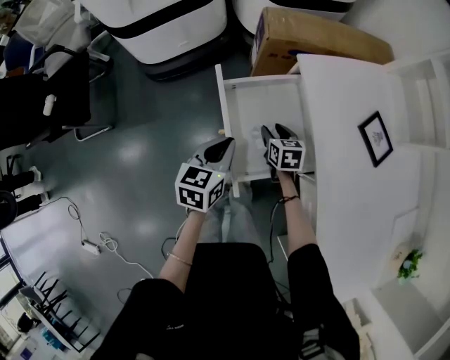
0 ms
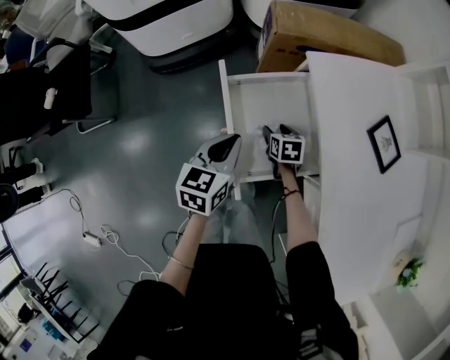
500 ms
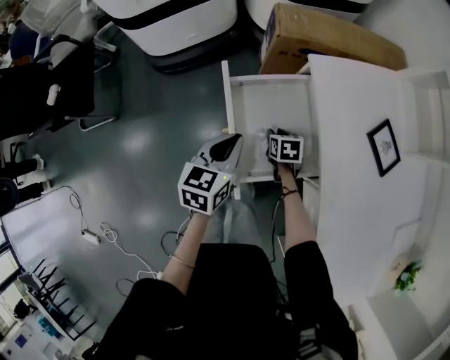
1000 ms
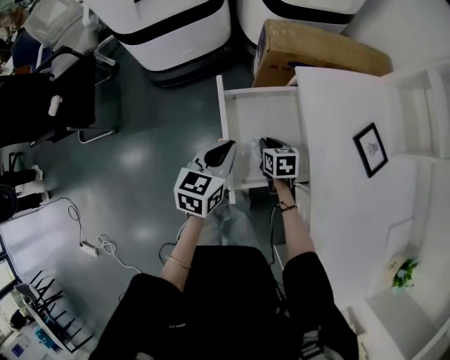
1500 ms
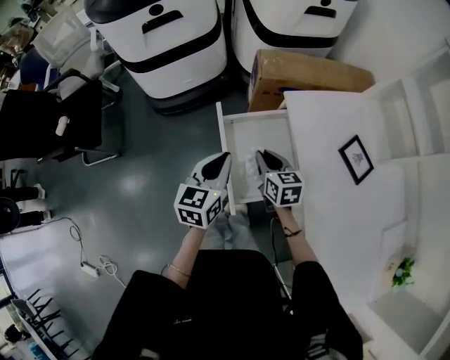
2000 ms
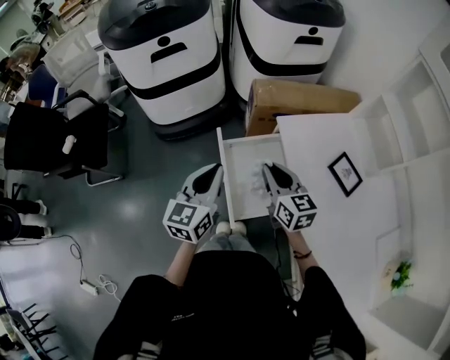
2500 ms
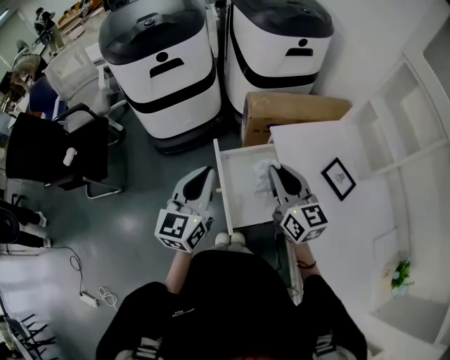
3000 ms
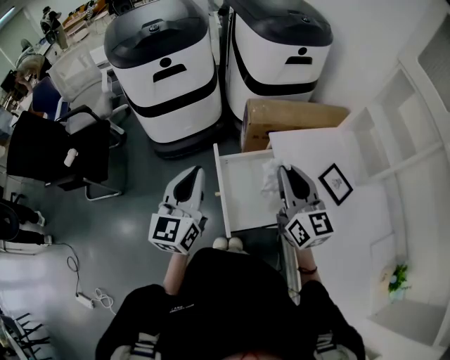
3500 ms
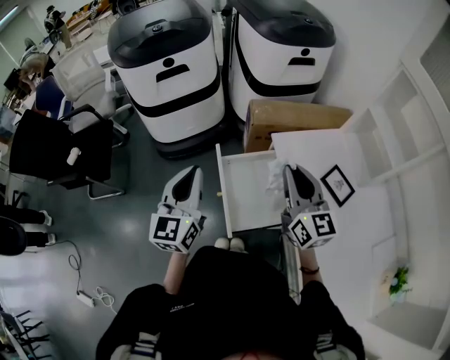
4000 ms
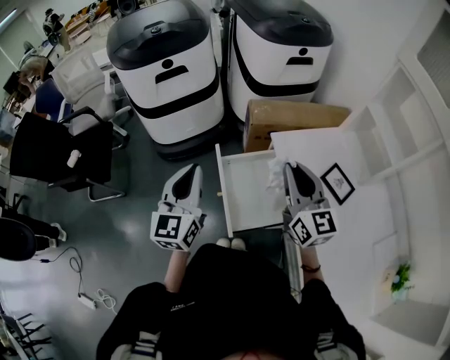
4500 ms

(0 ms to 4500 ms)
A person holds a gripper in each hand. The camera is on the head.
0 ms - 2000 ms: The left gripper moves upward, about 10 cm; the right gripper is displaced upward by approximately 15 cm, and closes up.
2000 ms - 4500 ms: The left gripper goes roughly 20 cm upward, and rotates some 30 degrees. Meanwhile the right gripper shifts approximately 30 cm upward, and tips its fingers upward by some 30 degrees.

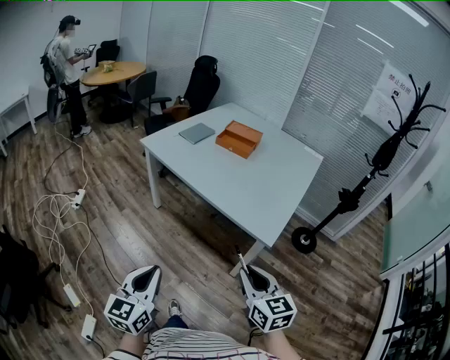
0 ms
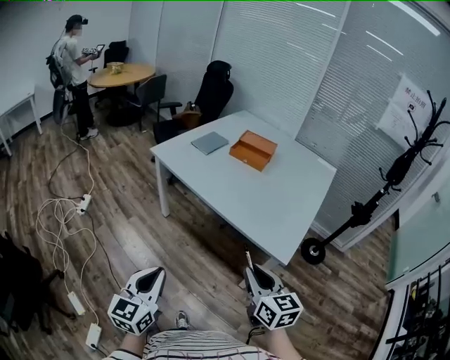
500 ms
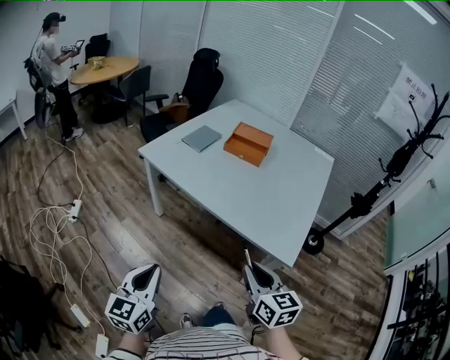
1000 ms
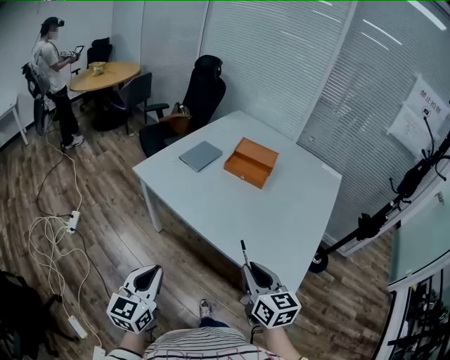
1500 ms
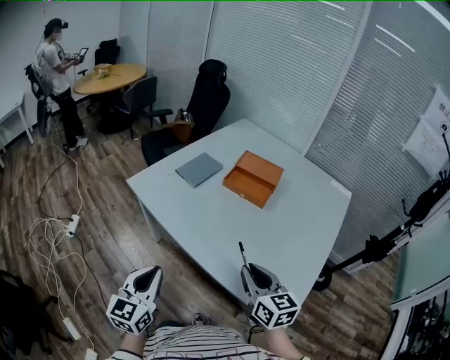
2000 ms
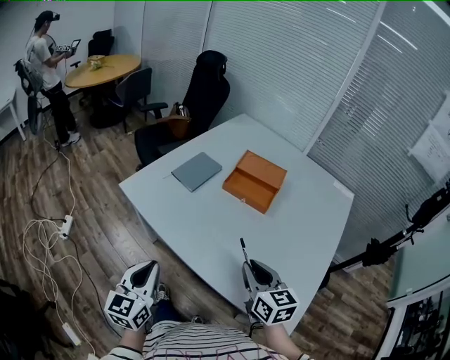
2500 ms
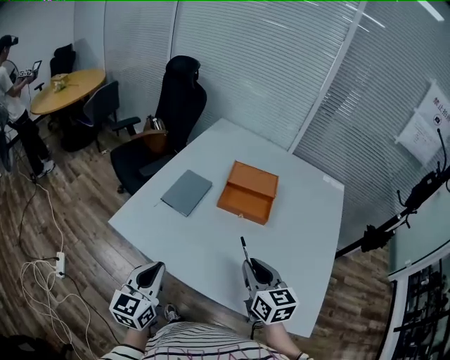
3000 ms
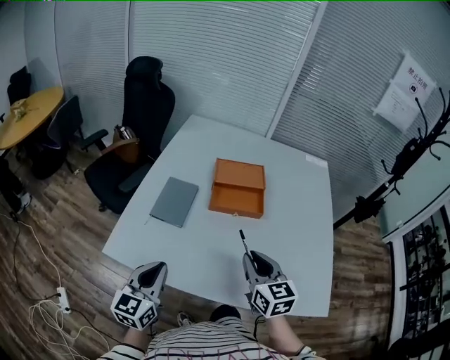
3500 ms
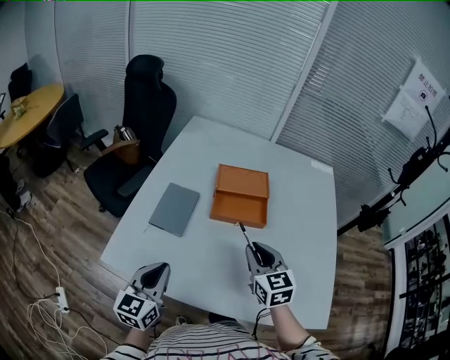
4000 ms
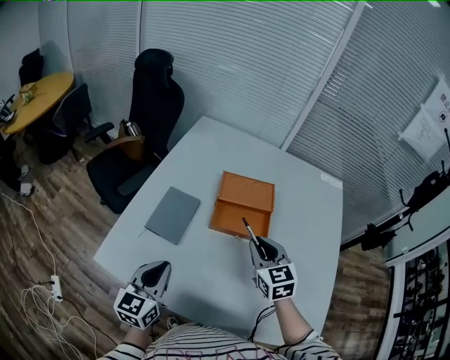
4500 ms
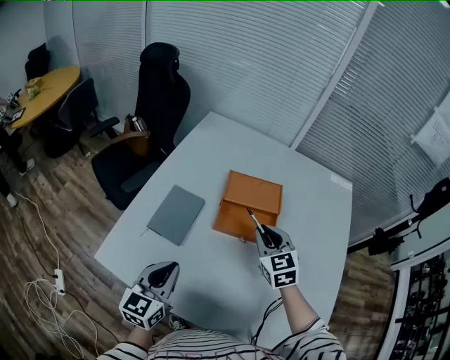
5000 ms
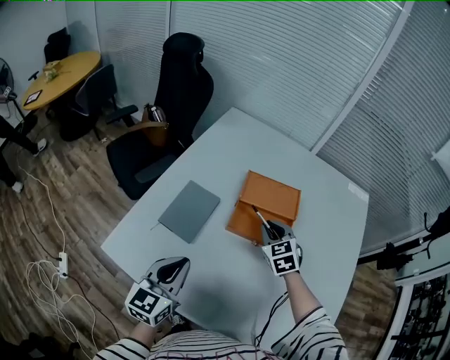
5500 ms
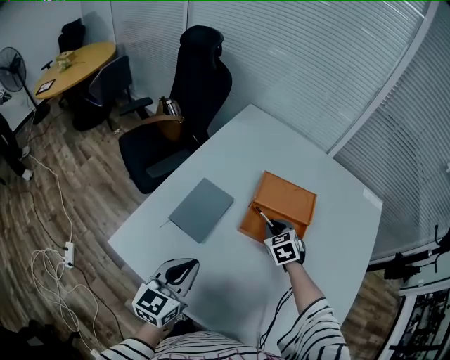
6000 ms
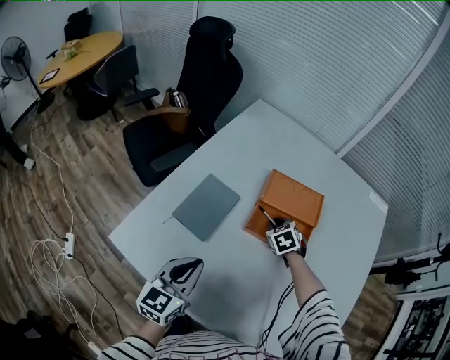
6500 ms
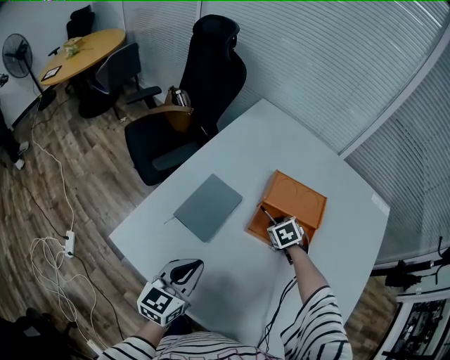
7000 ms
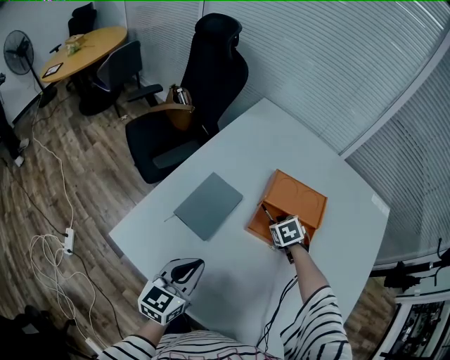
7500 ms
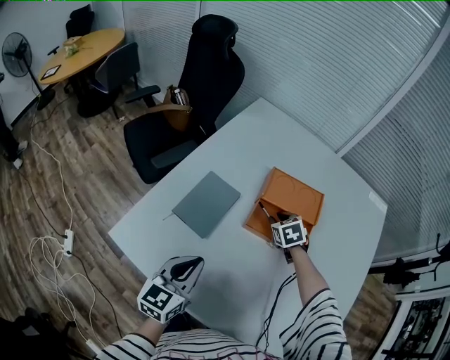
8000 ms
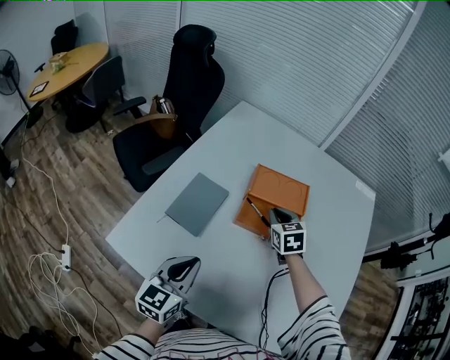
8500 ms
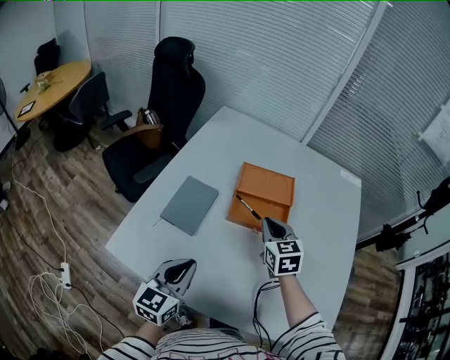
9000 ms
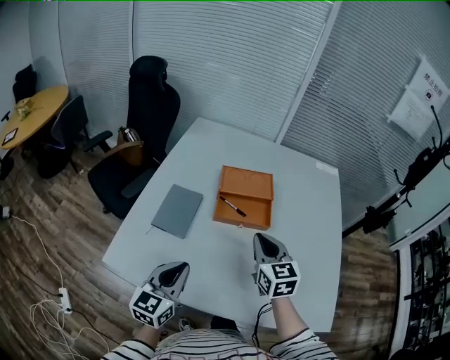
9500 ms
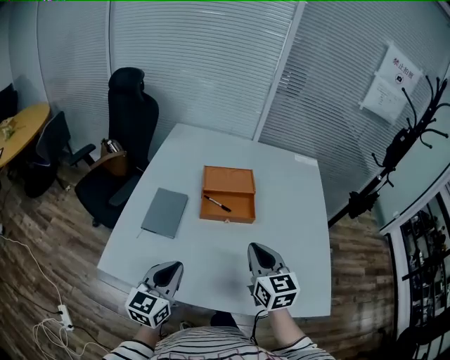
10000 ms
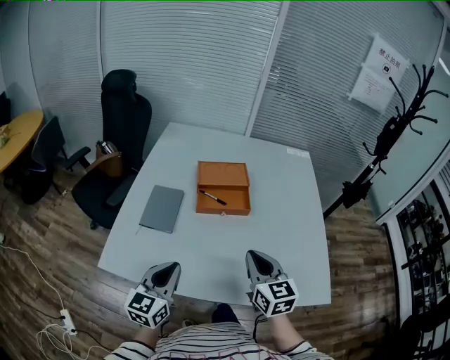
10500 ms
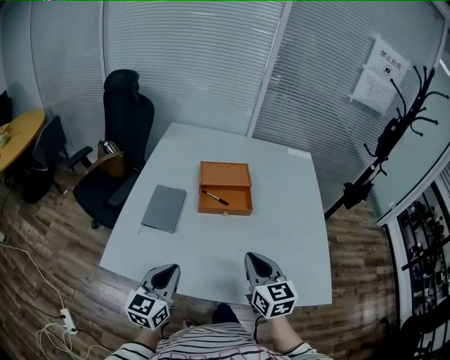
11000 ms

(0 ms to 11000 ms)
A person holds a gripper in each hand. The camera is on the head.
0 ms - 2000 ms: Both grippers travel together forward, roughly 40 cm.
2000 ms - 3500 ms: The left gripper shifts by approximately 30 cm, and changes its angle by about 30 degrees. The right gripper moves roughly 20 cm, and swivels approximately 30 degrees.
3500 ms - 5500 ms: The right gripper goes approximately 30 cm forward, and turns by roughly 40 degrees. Meanwhile the left gripper heads forward, covering approximately 15 cm.
5500 ms - 7500 ms: The left gripper travels downward by roughly 5 cm. The right gripper moves downward and forward, some 15 cm, and swivels some 30 degrees.
7500 ms - 9000 ms: The left gripper travels backward by about 5 cm. Meanwhile the right gripper travels upward and backward by about 20 cm, and angles its fingers upward, by roughly 40 degrees.
9000 ms - 11000 ms: The left gripper goes some 10 cm backward. Meanwhile the right gripper moves backward, roughly 25 cm.

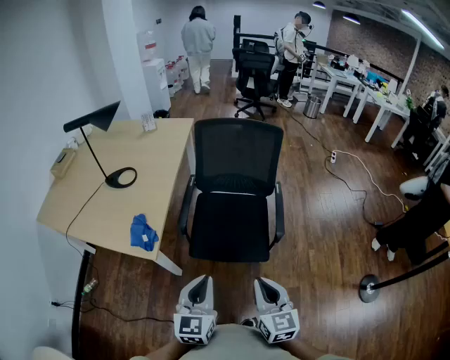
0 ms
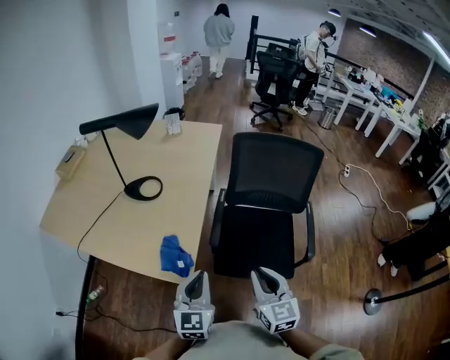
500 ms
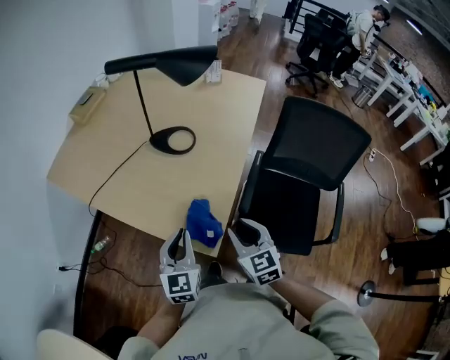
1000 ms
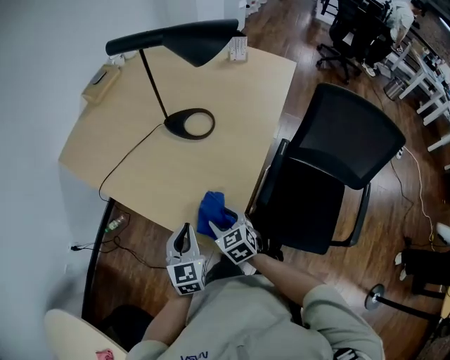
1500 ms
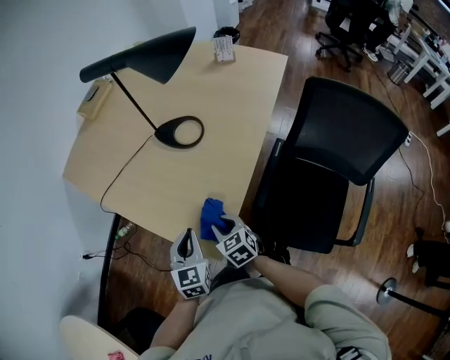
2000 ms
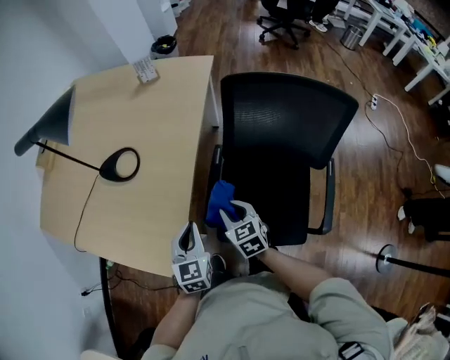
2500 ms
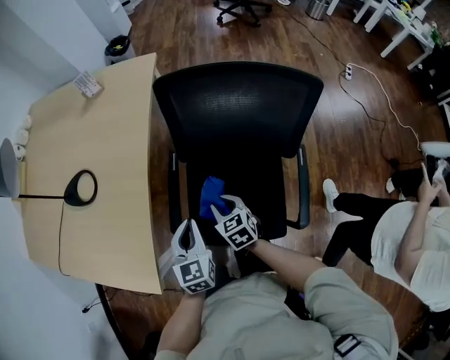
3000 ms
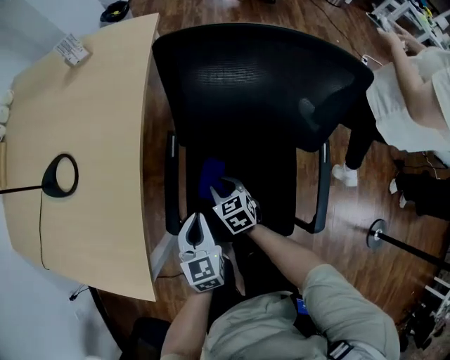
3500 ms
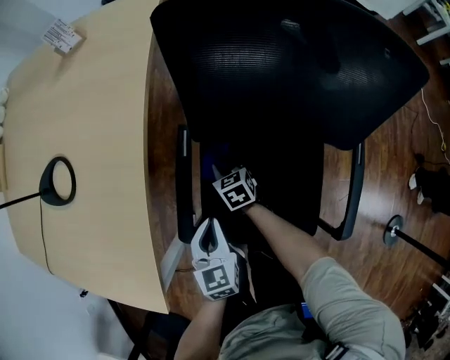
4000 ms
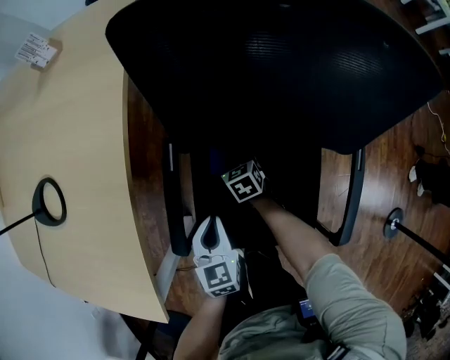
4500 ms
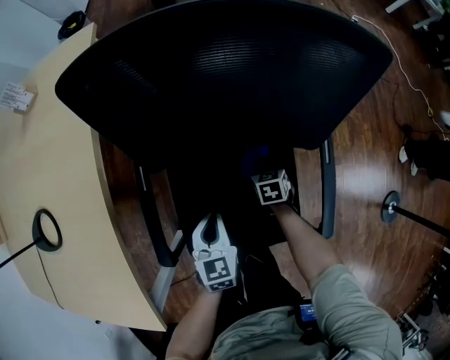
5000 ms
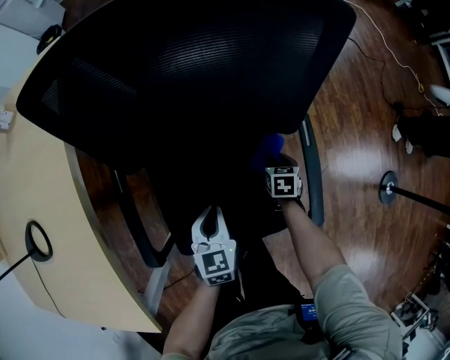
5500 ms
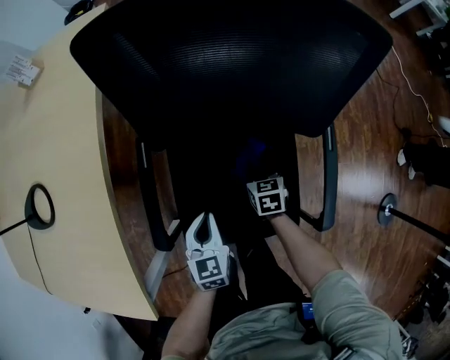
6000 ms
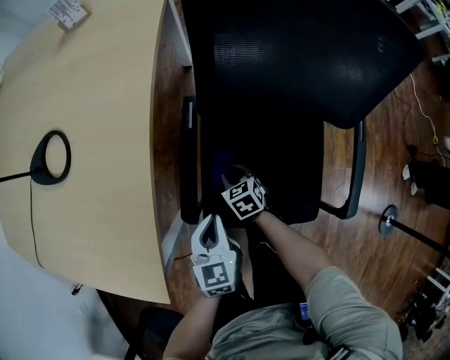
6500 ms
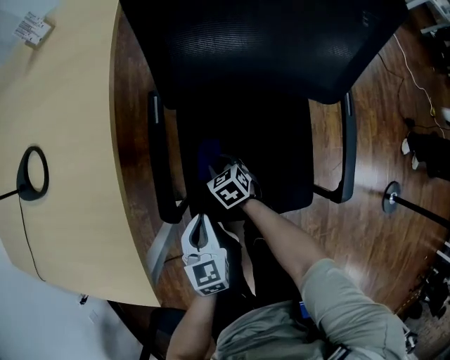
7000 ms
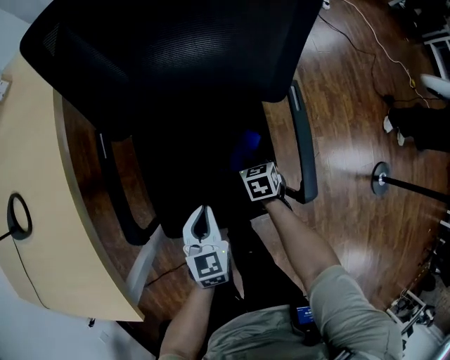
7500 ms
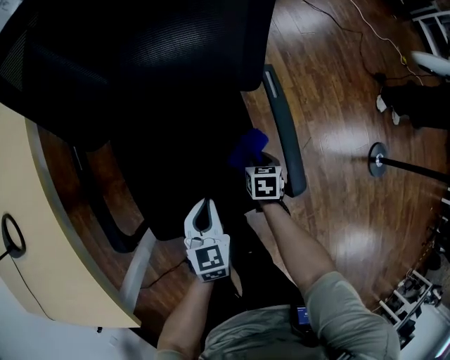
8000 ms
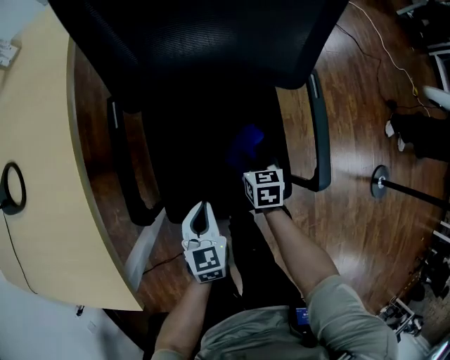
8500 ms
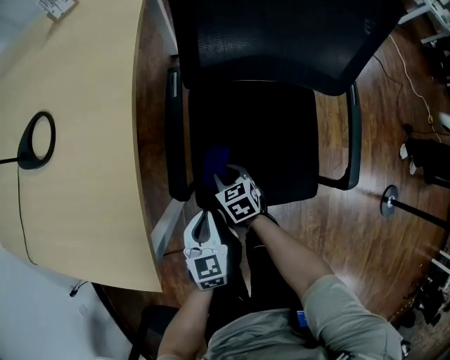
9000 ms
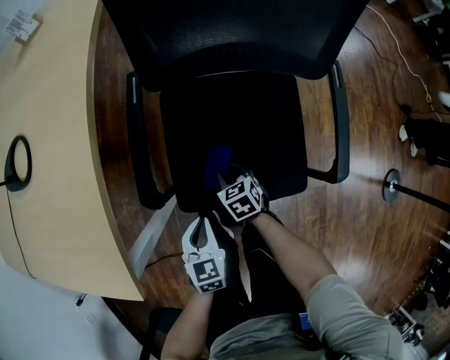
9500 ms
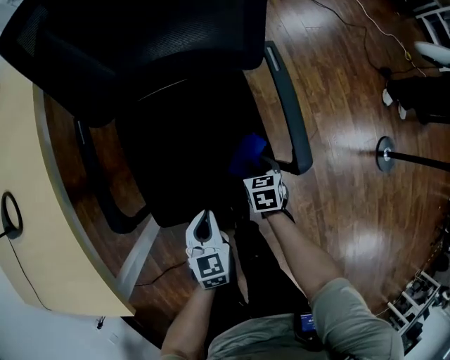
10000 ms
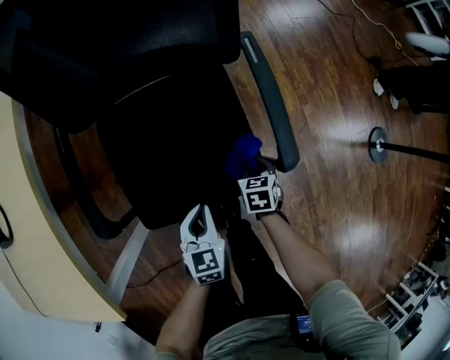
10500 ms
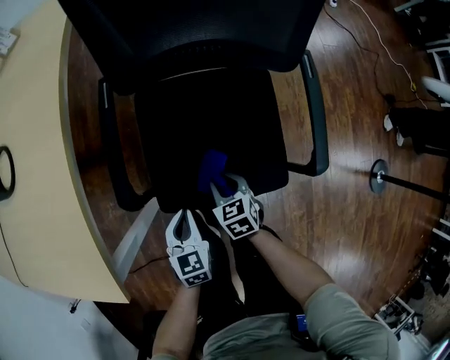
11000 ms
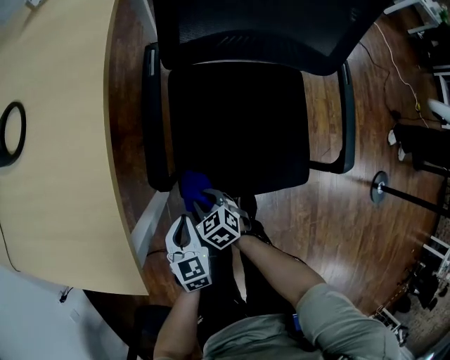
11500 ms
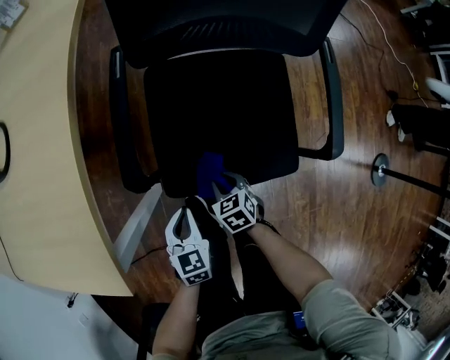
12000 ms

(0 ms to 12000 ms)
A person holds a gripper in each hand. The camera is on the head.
0 ms - 2000 ms: Both grippers are carried some 50 cm. The right gripper rotates some 50 degrees, and opens up. The left gripper changes its angle by about 40 degrees.
2000 ms - 4000 ms: The right gripper heads to the right, downward and forward, covering some 50 cm, and changes its angle by roughly 30 degrees. Meanwhile the left gripper moves to the right and downward, some 40 cm, and turns by approximately 20 degrees.
4000 ms - 6000 ms: The right gripper rotates roughly 20 degrees.
6000 ms - 8000 ms: The left gripper moves about 15 cm; the right gripper changes place by roughly 20 cm, and changes its angle by roughly 30 degrees.
10000 ms - 12000 ms: The left gripper shifts by approximately 20 cm. The right gripper ends up roughly 25 cm from where it was, and changes its angle by some 30 degrees.
